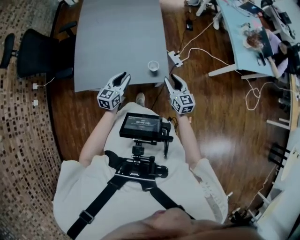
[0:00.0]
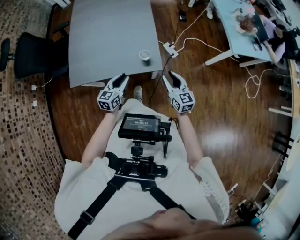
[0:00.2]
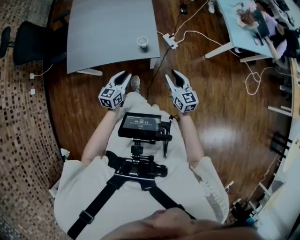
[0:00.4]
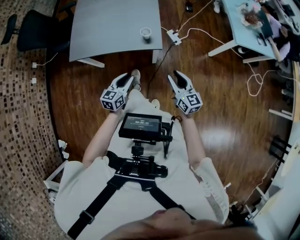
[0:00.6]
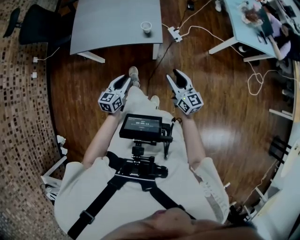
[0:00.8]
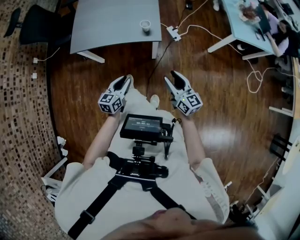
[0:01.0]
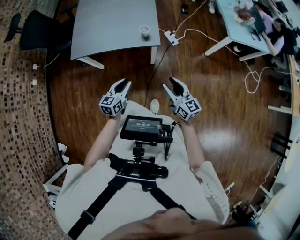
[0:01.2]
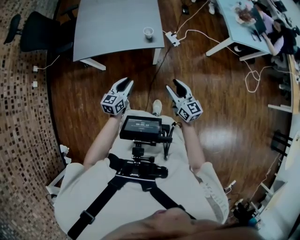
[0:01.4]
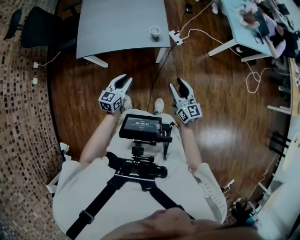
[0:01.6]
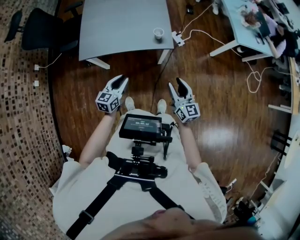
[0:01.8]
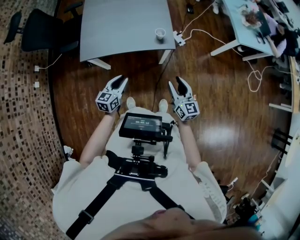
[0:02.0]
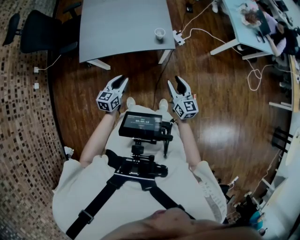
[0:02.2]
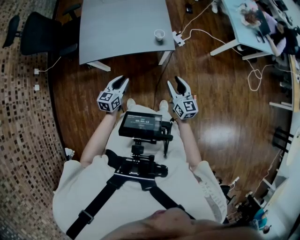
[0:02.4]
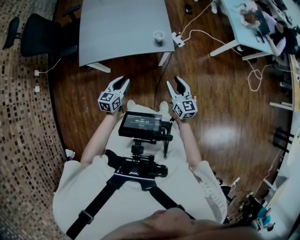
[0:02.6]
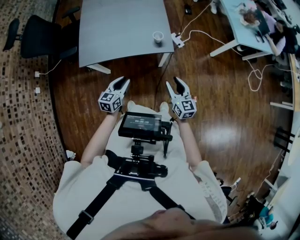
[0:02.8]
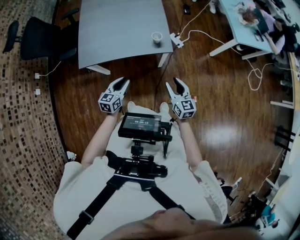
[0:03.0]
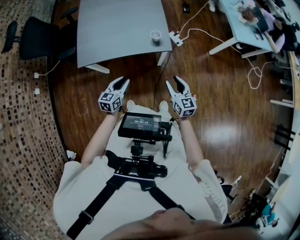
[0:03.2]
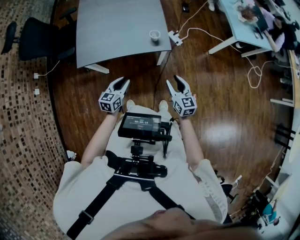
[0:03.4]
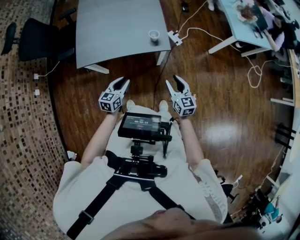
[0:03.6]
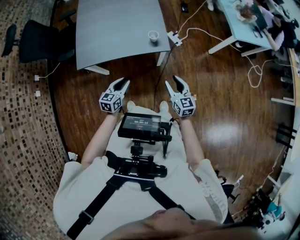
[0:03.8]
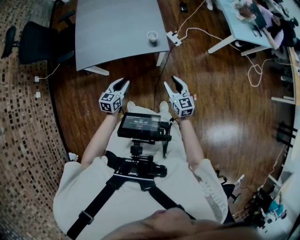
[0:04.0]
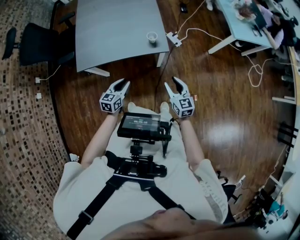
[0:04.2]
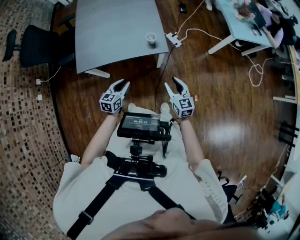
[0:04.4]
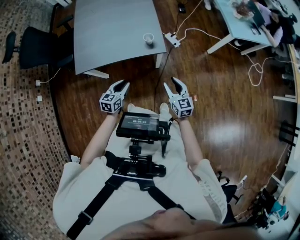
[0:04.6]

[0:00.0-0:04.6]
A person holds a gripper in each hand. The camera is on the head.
0:00.0 to 0:01.6: The grippers both shift backward by some 30 cm.
0:01.6 to 0:03.0: The left gripper moves to the left, about 5 cm. Meanwhile the right gripper travels downward and to the left by roughly 10 cm.
0:03.0 to 0:04.6: The grippers stay close to where they were, moving slightly.

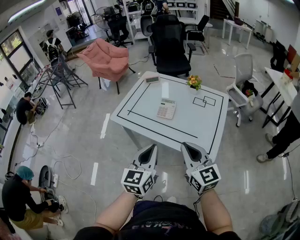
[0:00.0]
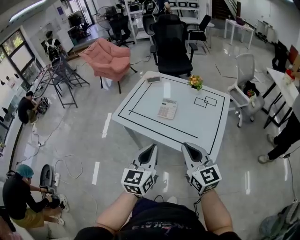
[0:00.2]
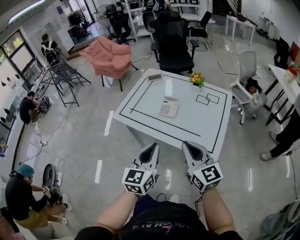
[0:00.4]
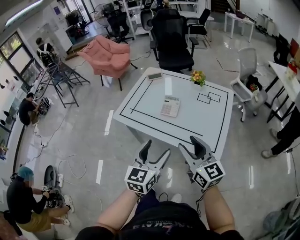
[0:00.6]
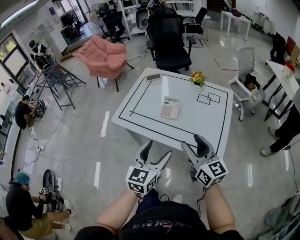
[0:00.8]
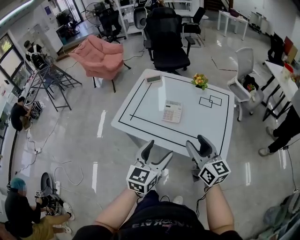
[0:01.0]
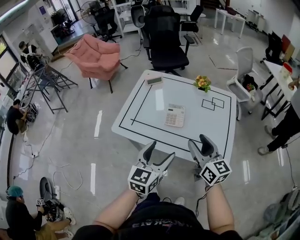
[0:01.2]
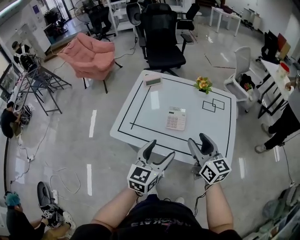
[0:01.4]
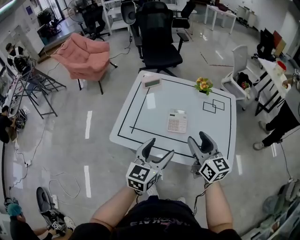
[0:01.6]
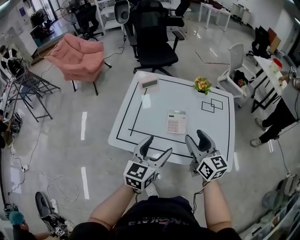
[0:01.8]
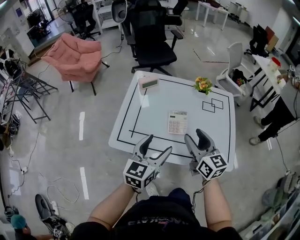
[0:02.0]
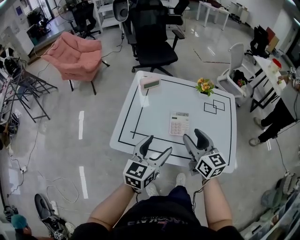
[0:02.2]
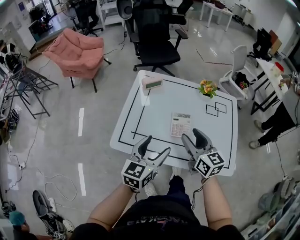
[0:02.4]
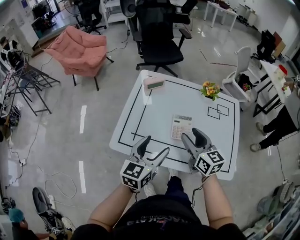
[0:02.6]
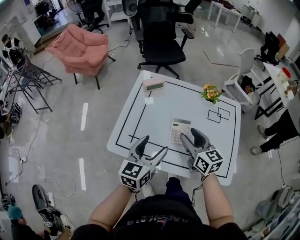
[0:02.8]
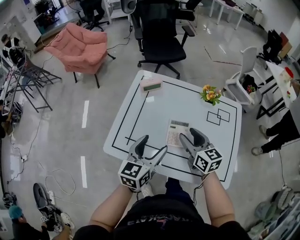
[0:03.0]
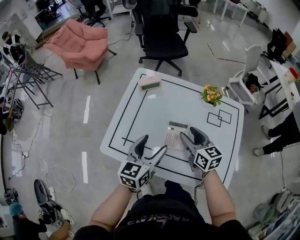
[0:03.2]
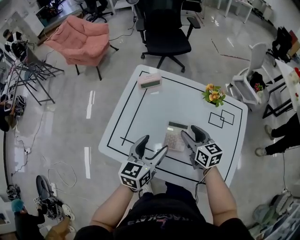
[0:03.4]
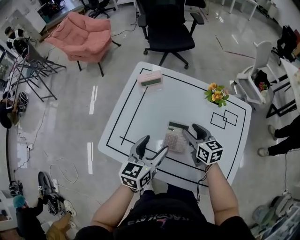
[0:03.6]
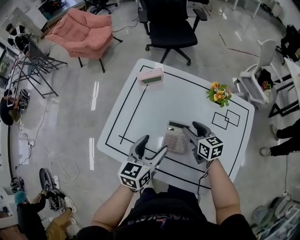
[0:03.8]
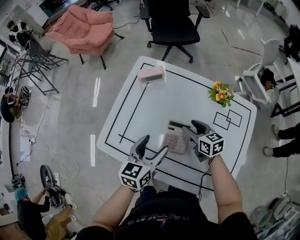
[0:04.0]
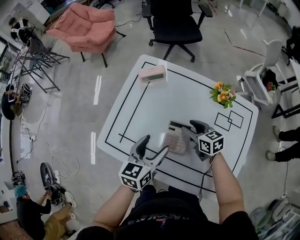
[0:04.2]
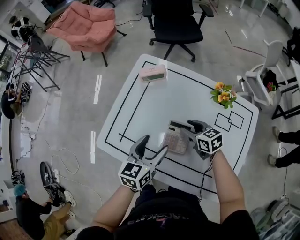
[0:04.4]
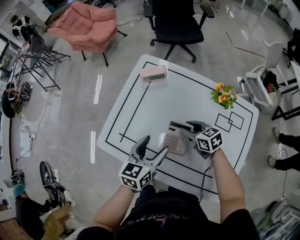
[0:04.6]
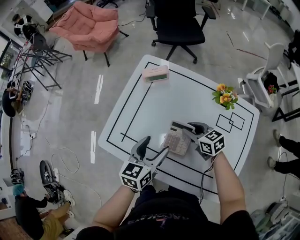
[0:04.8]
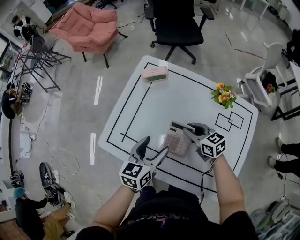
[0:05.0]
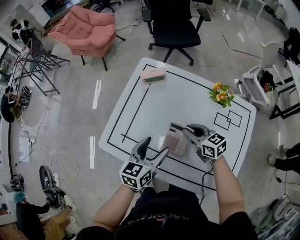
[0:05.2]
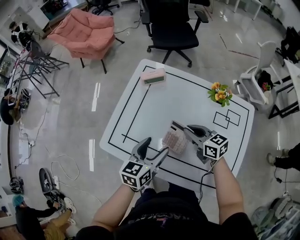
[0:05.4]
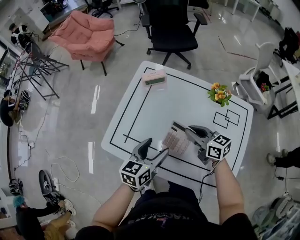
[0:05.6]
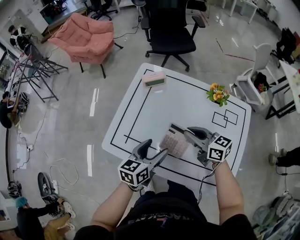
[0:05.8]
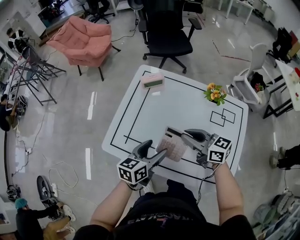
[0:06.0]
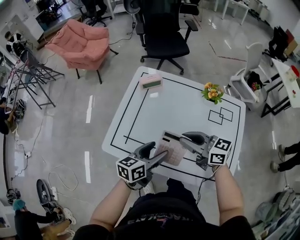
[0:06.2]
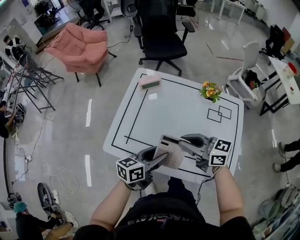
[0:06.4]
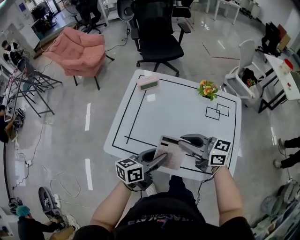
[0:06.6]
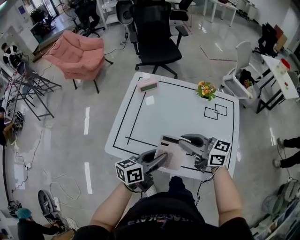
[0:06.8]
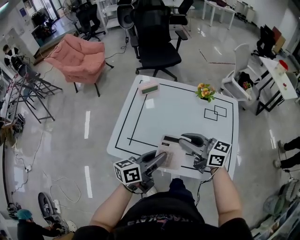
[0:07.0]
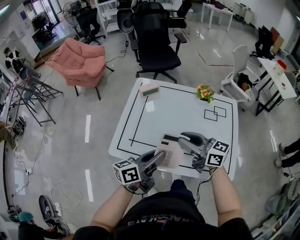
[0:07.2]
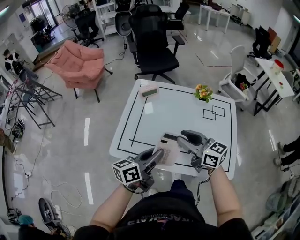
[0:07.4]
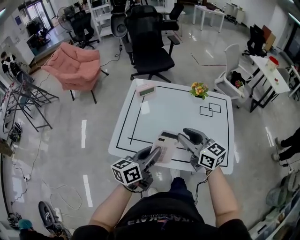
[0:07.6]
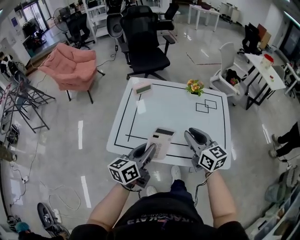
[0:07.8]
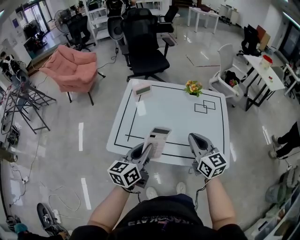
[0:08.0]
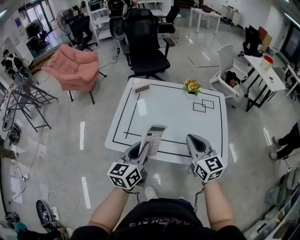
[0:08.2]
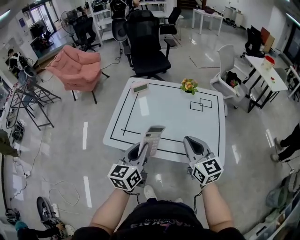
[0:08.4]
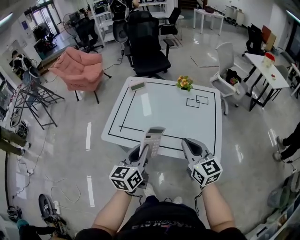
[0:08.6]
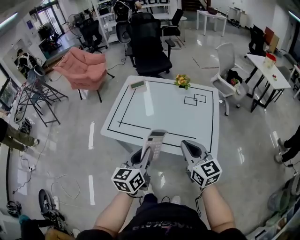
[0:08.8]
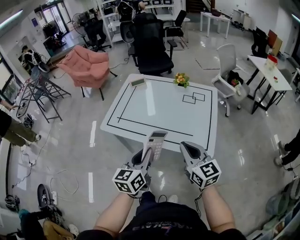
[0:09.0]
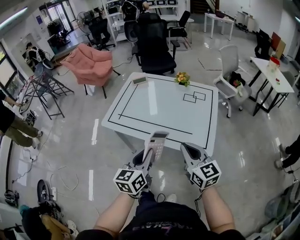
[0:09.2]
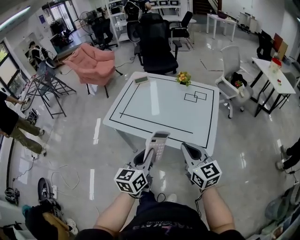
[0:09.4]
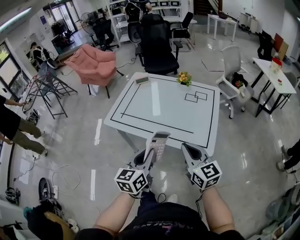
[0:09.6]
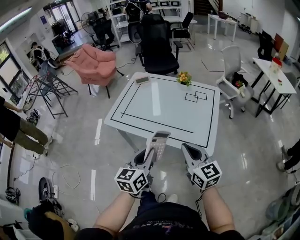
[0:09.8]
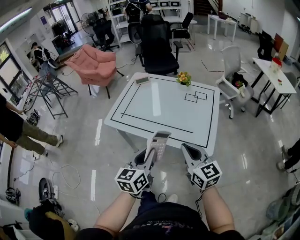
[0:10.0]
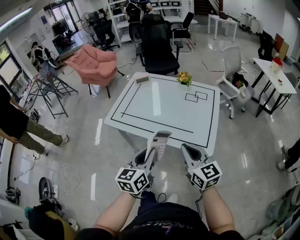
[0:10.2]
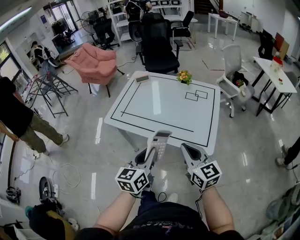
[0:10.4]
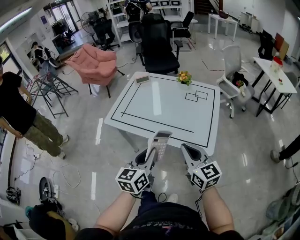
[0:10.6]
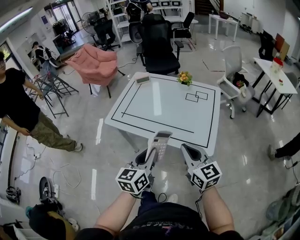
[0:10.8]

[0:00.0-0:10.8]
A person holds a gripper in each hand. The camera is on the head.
0:00.0 to 0:01.6: The left gripper goes some 20 cm forward and to the left, changes its angle by some 20 degrees, and opens up. The right gripper is displaced forward by about 20 cm, swivels about 20 degrees, and opens its fingers.
0:01.6 to 0:03.0: The right gripper shifts roughly 15 cm forward and downward, while the left gripper heads forward, covering roughly 10 cm.
0:03.0 to 0:04.6: The right gripper travels downward and forward by approximately 15 cm, and rotates some 40 degrees. The left gripper is displaced downward by about 10 cm.
0:04.6 to 0:06.2: The right gripper shifts about 20 cm upward and backward, rotates some 30 degrees, and closes up. Meanwhile the left gripper is displaced backward by approximately 5 cm, and changes its angle by roughly 20 degrees.
0:06.2 to 0:07.8: The left gripper is displaced upward, backward and to the left by approximately 15 cm, and closes. Meanwhile the right gripper travels backward by some 10 cm, and rotates approximately 40 degrees.
0:07.8 to 0:09.2: Both grippers move backward and to the right, some 25 cm. The right gripper closes up. The left gripper rotates roughly 30 degrees.
0:09.2 to 0:10.8: The grippers make only small movements.

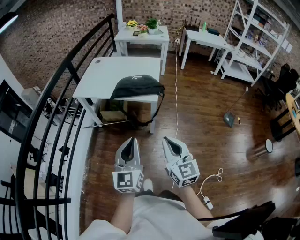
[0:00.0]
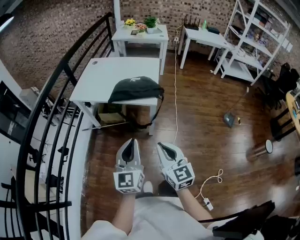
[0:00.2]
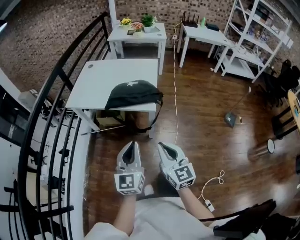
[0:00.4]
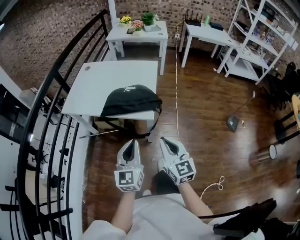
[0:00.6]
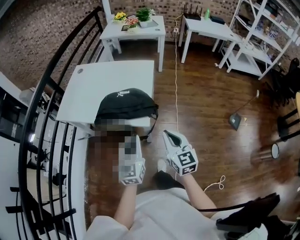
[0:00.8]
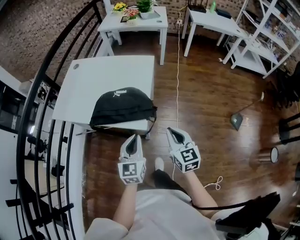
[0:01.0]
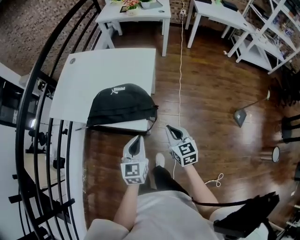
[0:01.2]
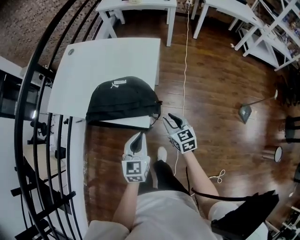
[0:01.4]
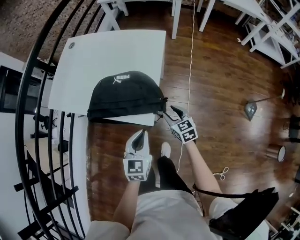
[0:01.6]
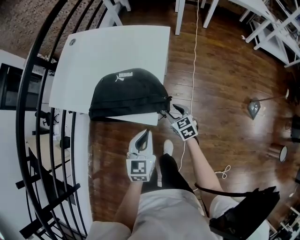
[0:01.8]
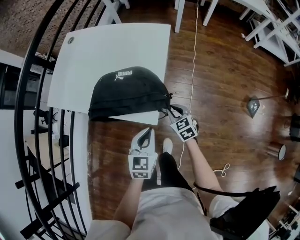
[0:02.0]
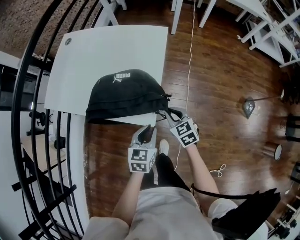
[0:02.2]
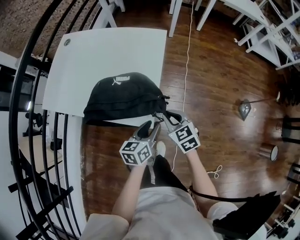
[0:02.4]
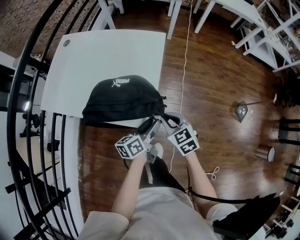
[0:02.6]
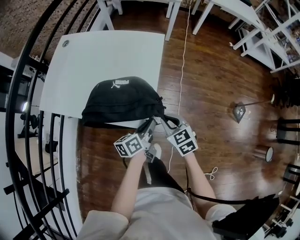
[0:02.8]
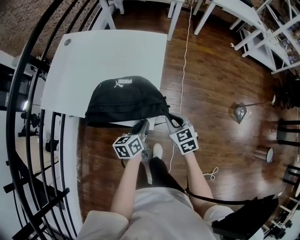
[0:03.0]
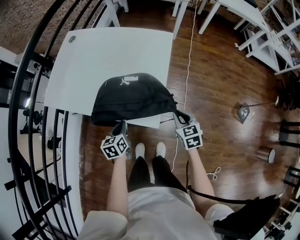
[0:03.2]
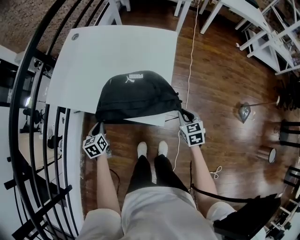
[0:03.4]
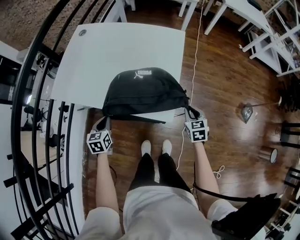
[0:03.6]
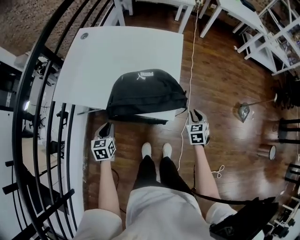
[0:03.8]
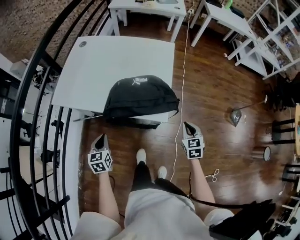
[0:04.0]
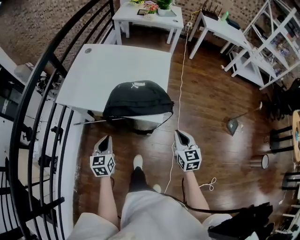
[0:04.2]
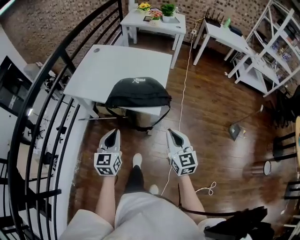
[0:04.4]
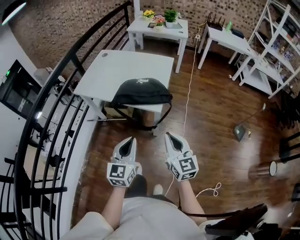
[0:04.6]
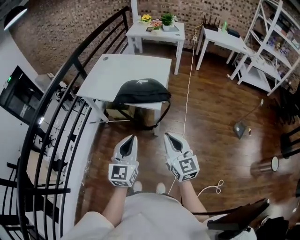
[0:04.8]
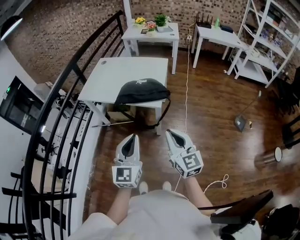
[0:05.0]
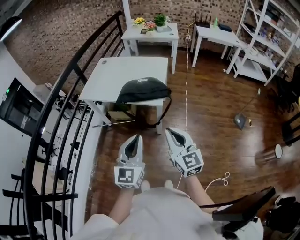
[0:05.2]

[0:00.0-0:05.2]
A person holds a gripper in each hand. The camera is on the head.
0:00.0 to 0:01.8: Both grippers are carried forward and to the right, some 50 cm. The left gripper travels downward by some 25 cm, and points its fingers some 30 degrees further downward, while the right gripper shifts about 35 cm downward, points its fingers some 40 degrees further downward, and opens.
0:01.8 to 0:03.4: The left gripper shifts some 30 cm to the left, turns by about 30 degrees, and opens and closes again. Meanwhile the right gripper moves upward, some 5 cm, and closes its fingers.
0:03.4 to 0:05.2: The right gripper is displaced backward and upward by some 50 cm, and tips its fingers upward by some 40 degrees, while the left gripper shifts some 60 cm backward, upward and to the right, and points its fingers about 40 degrees further upward.

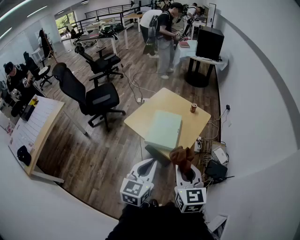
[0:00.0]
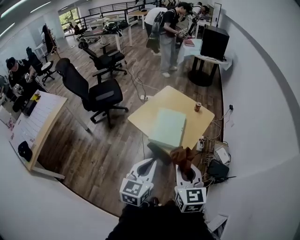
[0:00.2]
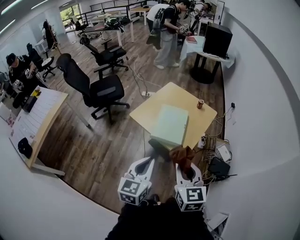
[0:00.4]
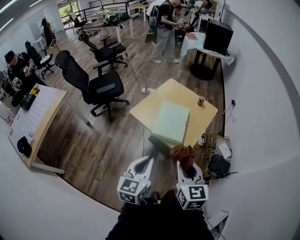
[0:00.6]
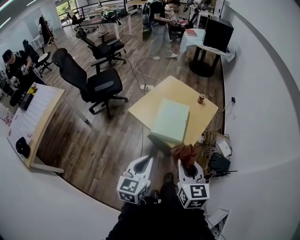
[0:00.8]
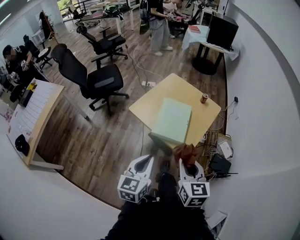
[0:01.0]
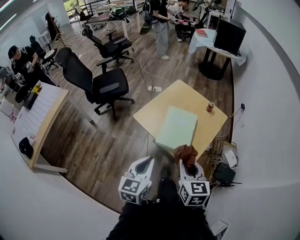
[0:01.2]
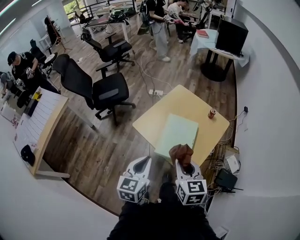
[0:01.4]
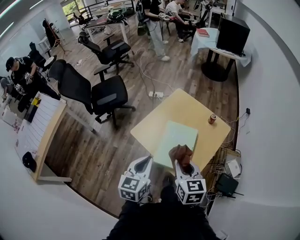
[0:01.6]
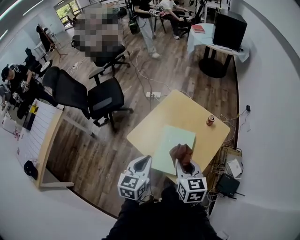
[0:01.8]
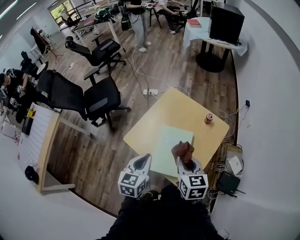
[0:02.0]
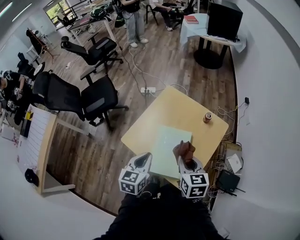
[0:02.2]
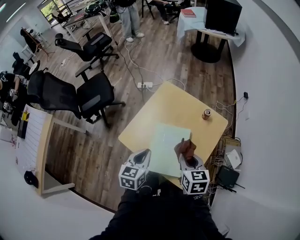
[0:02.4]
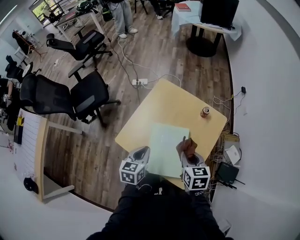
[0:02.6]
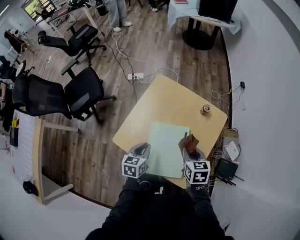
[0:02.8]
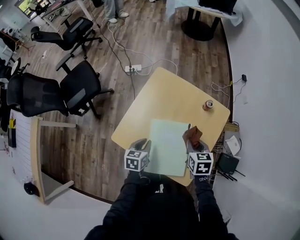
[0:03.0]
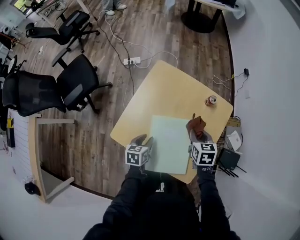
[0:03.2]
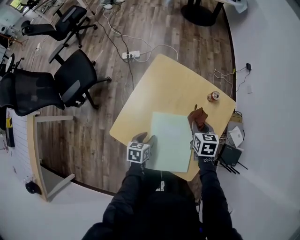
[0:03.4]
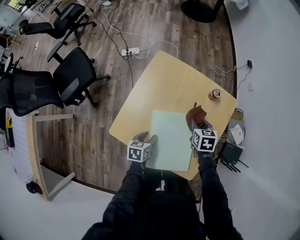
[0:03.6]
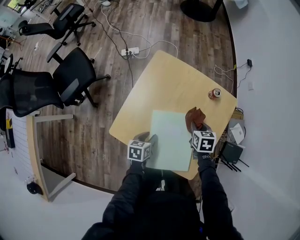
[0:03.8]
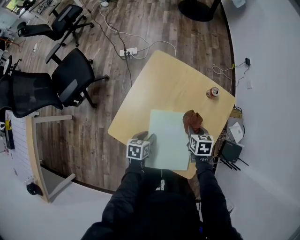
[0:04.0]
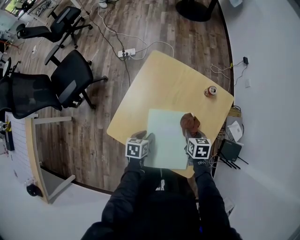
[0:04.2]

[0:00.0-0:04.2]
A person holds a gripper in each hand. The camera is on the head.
0:00.0 to 0:01.4: The left gripper is displaced forward, to the left and downward by approximately 20 cm. The right gripper goes approximately 20 cm forward and downward.
0:01.4 to 0:02.8: The left gripper travels forward and downward by roughly 35 cm, and changes its angle by about 30 degrees. The right gripper goes some 35 cm forward, downward and to the right, and changes its angle by roughly 30 degrees.
0:02.8 to 0:04.2: The grippers both shift downward by approximately 15 cm. The left gripper rotates some 20 degrees, and opens.
